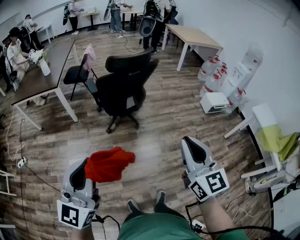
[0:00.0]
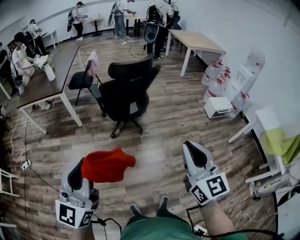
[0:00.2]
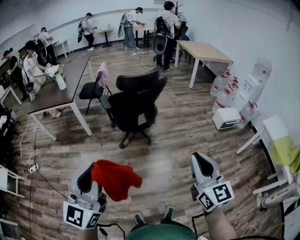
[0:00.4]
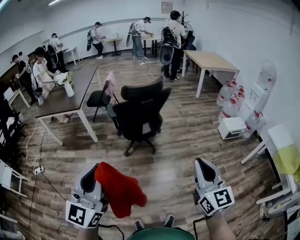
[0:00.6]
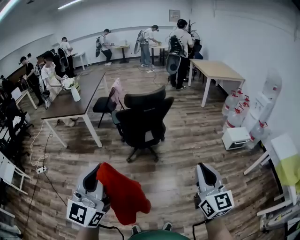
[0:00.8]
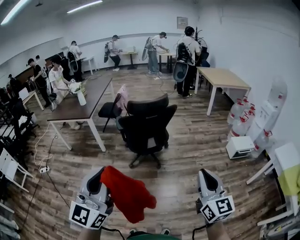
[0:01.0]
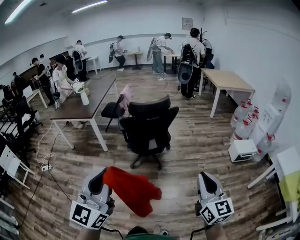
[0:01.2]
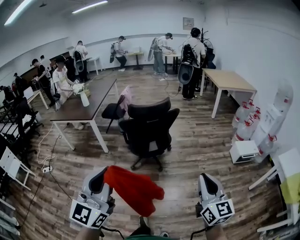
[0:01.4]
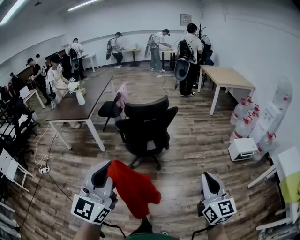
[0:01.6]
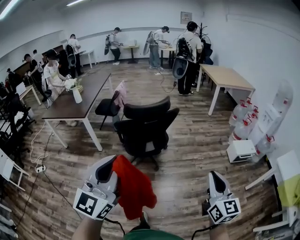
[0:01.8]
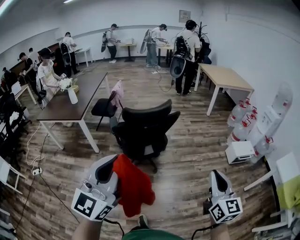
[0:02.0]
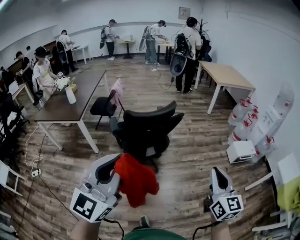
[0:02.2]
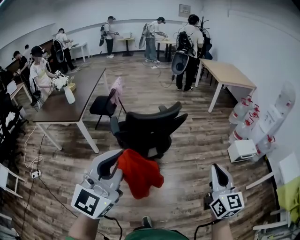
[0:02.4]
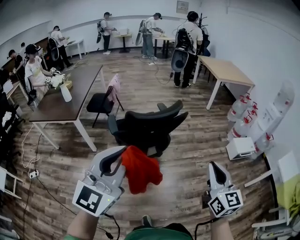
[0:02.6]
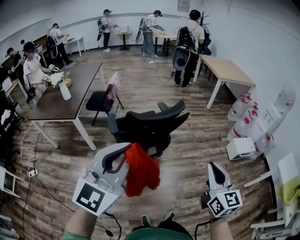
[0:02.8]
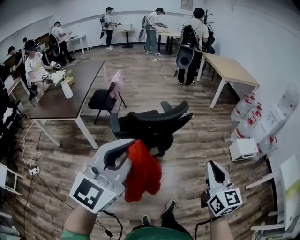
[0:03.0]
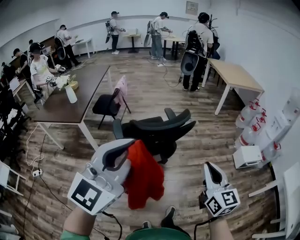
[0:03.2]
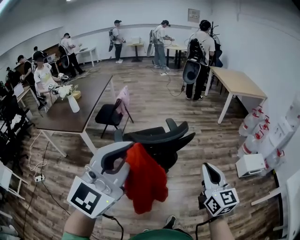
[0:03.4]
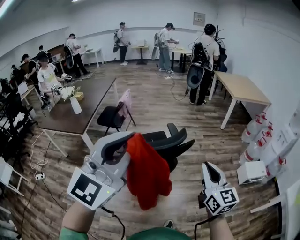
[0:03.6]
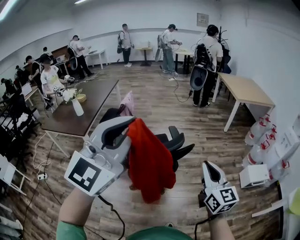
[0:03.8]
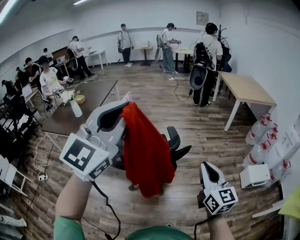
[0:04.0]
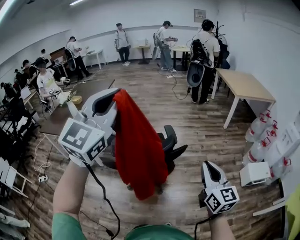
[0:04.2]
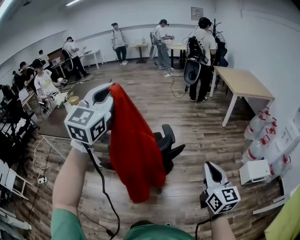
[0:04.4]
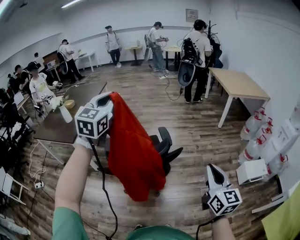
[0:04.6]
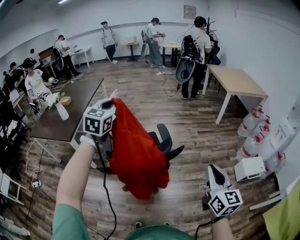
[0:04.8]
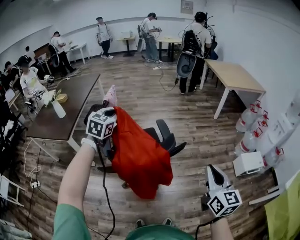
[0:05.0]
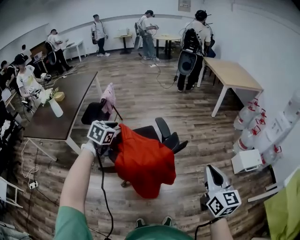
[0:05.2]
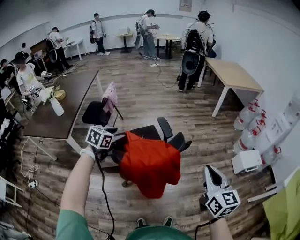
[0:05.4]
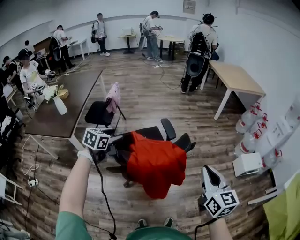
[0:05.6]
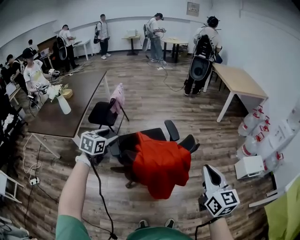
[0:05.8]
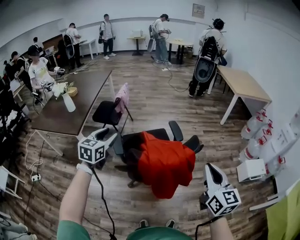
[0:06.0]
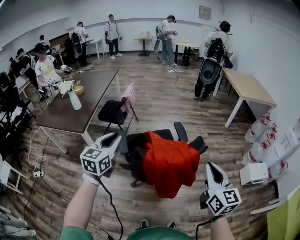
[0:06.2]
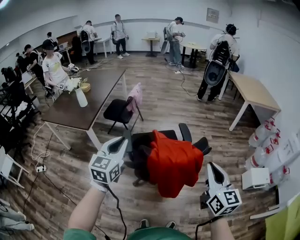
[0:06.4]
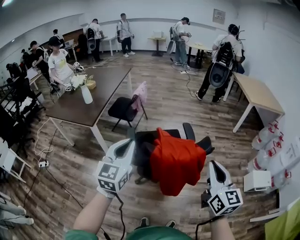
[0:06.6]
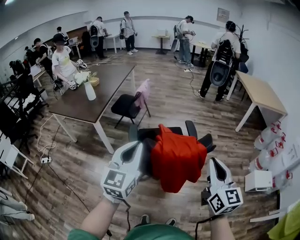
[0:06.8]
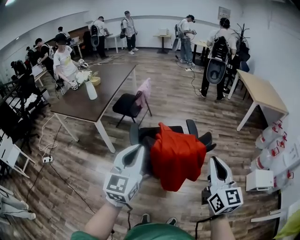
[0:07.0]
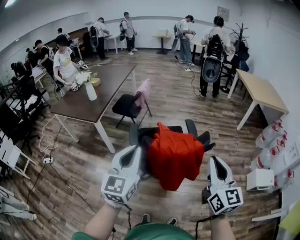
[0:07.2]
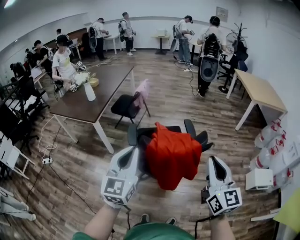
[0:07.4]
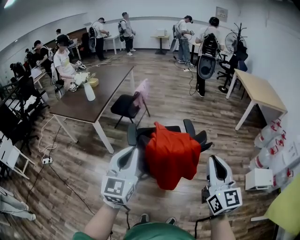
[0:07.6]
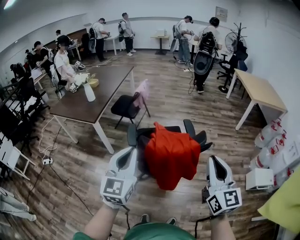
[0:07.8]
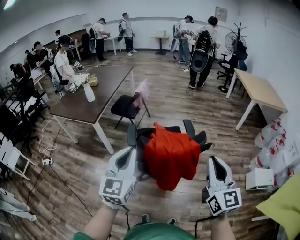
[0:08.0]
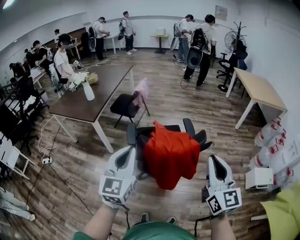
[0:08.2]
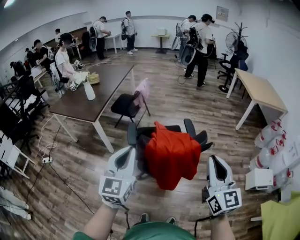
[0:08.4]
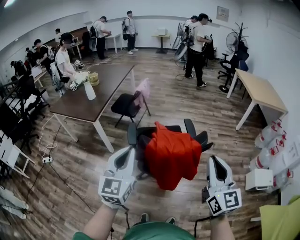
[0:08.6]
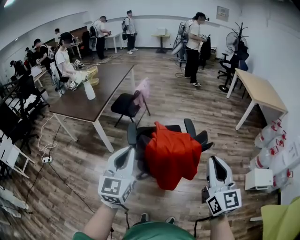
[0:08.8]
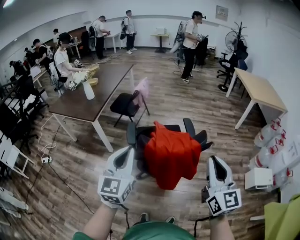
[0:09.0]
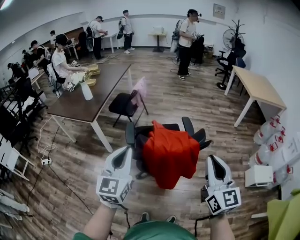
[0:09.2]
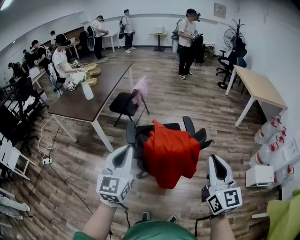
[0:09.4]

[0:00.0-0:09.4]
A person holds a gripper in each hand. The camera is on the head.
0:00.0 to 0:01.6: The right gripper travels to the right by roughly 20 cm. Meanwhile the left gripper travels to the right and forward by some 20 cm.
0:01.6 to 0:03.2: The right gripper moves forward and to the left, approximately 35 cm. Meanwhile the left gripper shifts approximately 30 cm forward.
0:03.2 to 0:04.8: The left gripper shifts some 40 cm forward, and turns by some 30 degrees. The right gripper moves forward and to the right, some 20 cm.
0:04.8 to 0:06.2: The left gripper travels backward, to the left and downward by some 25 cm, and opens, then closes again, while the right gripper moves to the left, about 15 cm.
0:06.2 to 0:07.8: The right gripper shifts by approximately 5 cm. The left gripper travels backward and to the right by some 15 cm.
0:07.8 to 0:09.4: The grippers make only small movements.

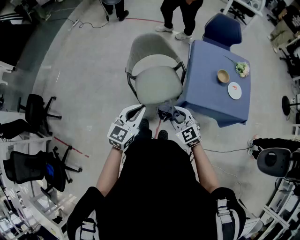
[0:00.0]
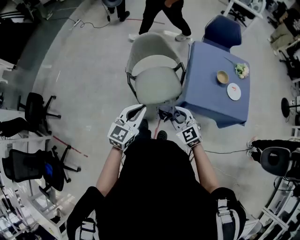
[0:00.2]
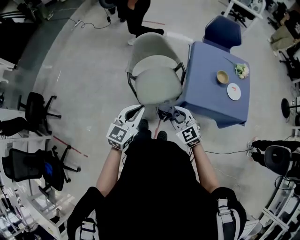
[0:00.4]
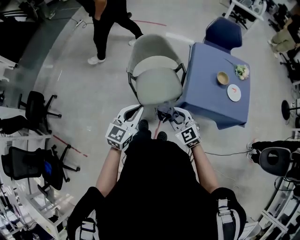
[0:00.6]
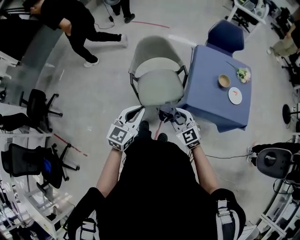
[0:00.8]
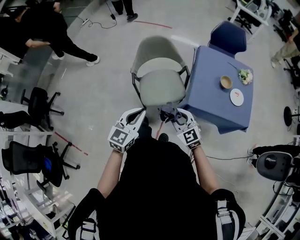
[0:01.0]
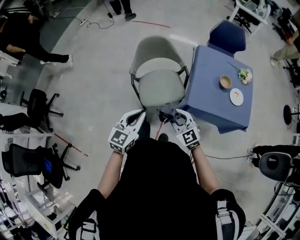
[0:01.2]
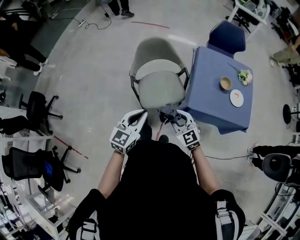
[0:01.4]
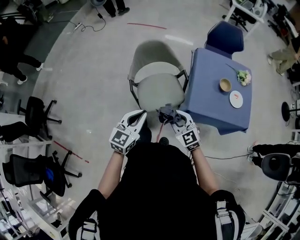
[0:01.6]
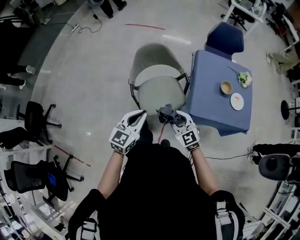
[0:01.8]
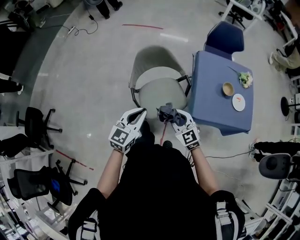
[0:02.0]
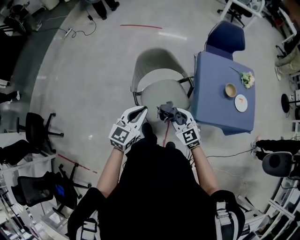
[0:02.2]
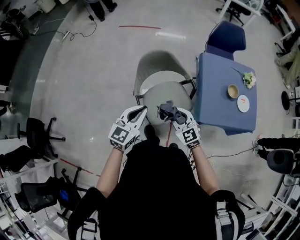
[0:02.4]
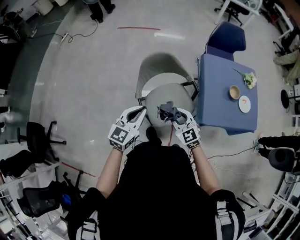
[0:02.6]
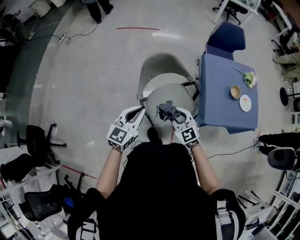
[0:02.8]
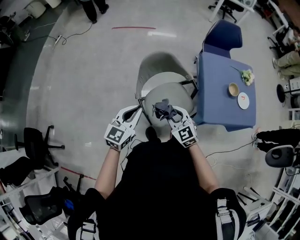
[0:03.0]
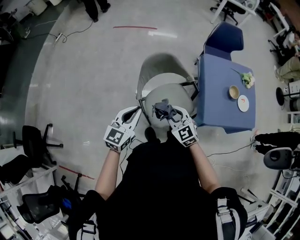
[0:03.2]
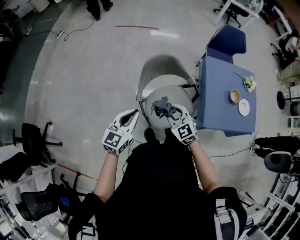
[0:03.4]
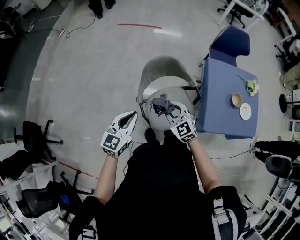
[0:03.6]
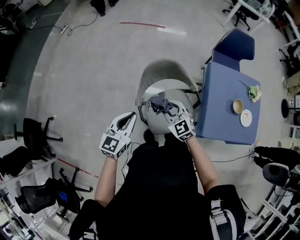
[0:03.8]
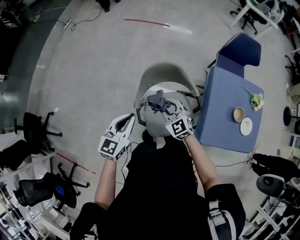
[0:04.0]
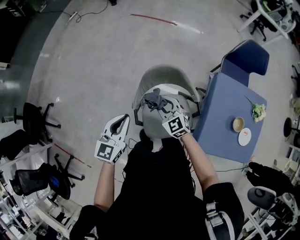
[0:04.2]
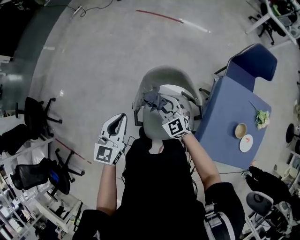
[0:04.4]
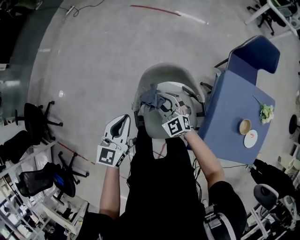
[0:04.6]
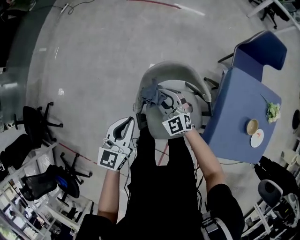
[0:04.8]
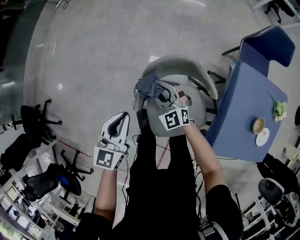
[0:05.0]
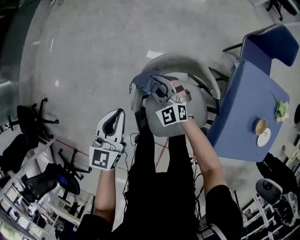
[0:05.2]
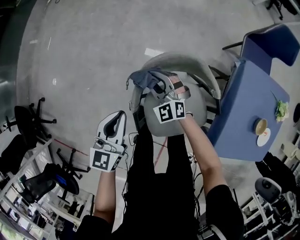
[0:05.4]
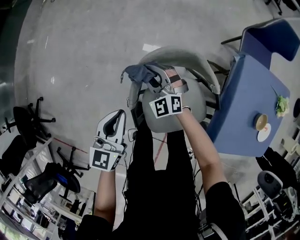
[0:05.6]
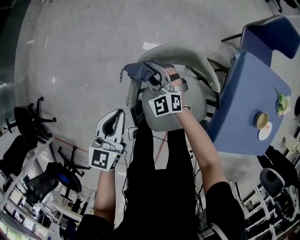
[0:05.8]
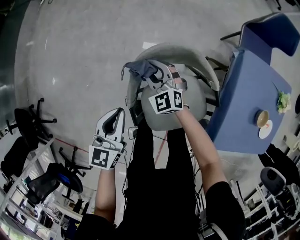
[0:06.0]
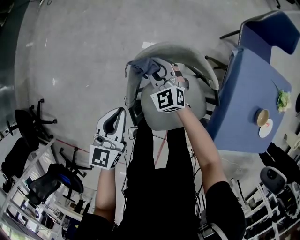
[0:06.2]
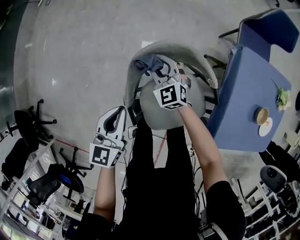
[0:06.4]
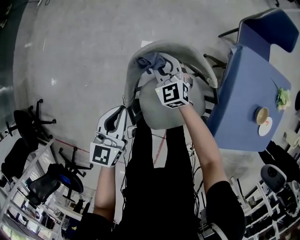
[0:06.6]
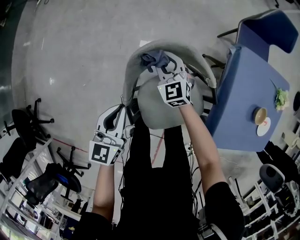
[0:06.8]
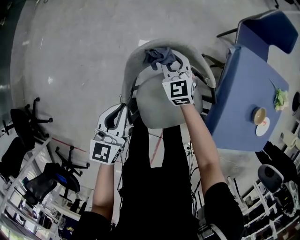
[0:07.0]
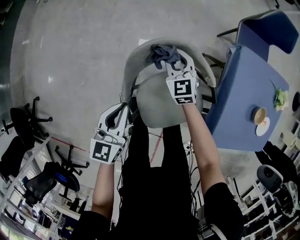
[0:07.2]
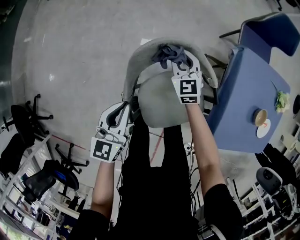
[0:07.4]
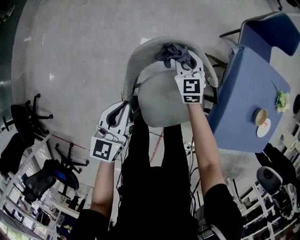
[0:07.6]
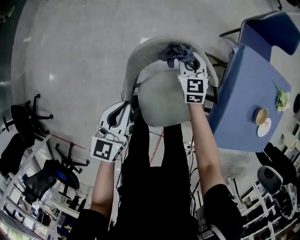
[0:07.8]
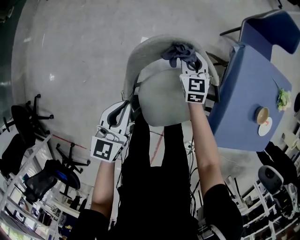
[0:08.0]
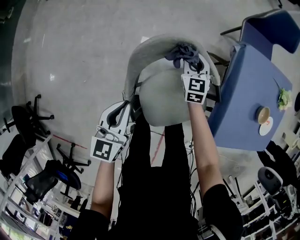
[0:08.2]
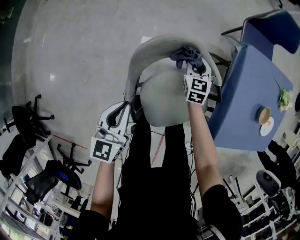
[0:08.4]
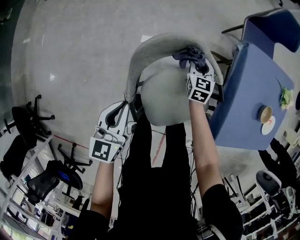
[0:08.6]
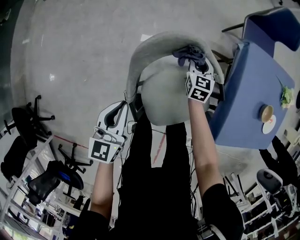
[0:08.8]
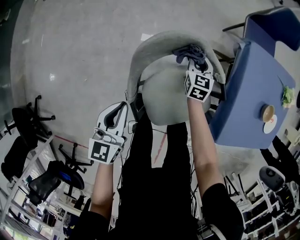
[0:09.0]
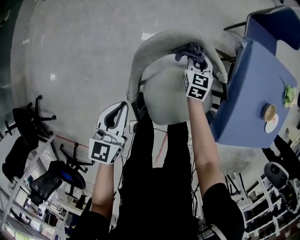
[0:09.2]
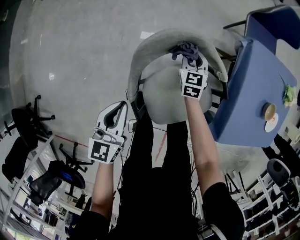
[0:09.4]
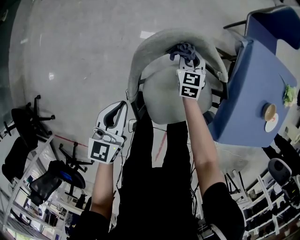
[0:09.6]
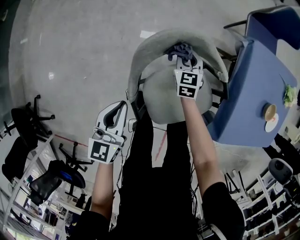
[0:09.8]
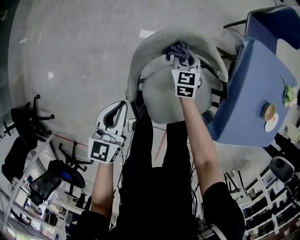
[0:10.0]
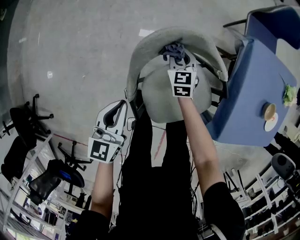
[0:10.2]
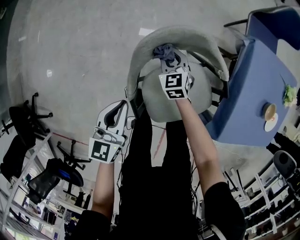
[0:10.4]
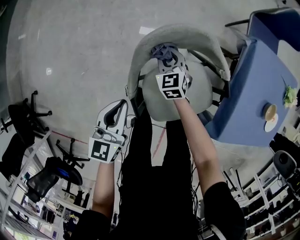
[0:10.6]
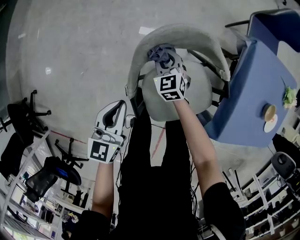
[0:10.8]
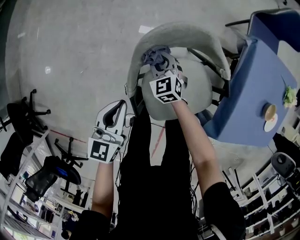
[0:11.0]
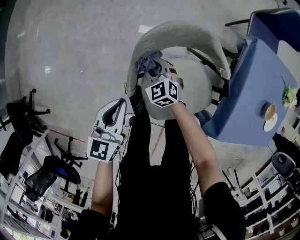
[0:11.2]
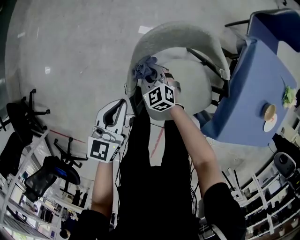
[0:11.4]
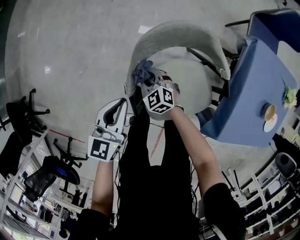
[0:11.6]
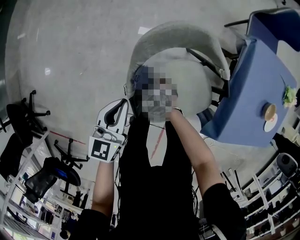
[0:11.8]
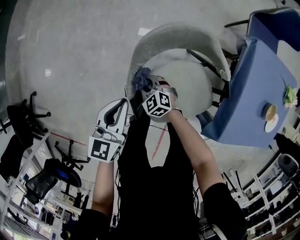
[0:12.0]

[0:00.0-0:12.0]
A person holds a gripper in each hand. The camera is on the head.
0:00.0 to 0:01.6: The grippers stay close to where they were, moving slightly.
0:01.6 to 0:03.0: The grippers both shift forward and to the left by some 30 cm.
0:03.0 to 0:04.4: The left gripper heads forward, covering about 15 cm, and changes its angle by some 30 degrees; the right gripper heads forward, covering roughly 25 cm, and rotates about 20 degrees.
0:04.4 to 0:06.0: The grippers both shift downward and forward by about 20 cm.
0:06.0 to 0:07.6: The right gripper goes some 15 cm to the right, and turns by some 30 degrees.
0:07.6 to 0:09.0: The right gripper travels downward and to the right by approximately 10 cm, and turns by approximately 30 degrees.
0:09.0 to 0:10.4: The right gripper travels to the left by about 15 cm, and rotates about 30 degrees.
0:10.4 to 0:12.0: The right gripper is displaced backward, to the left and downward by roughly 20 cm, and swivels about 30 degrees.

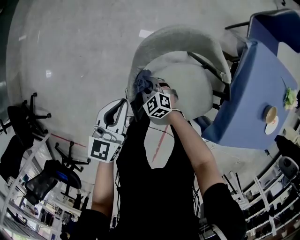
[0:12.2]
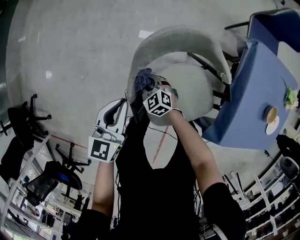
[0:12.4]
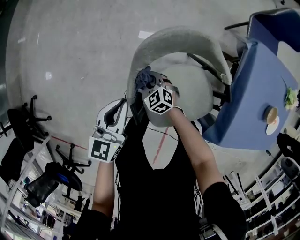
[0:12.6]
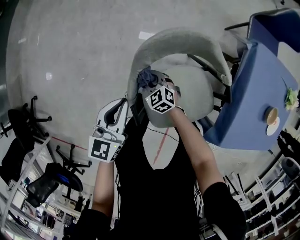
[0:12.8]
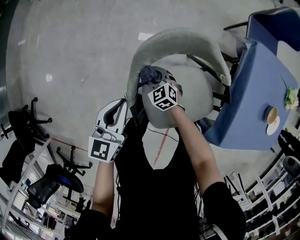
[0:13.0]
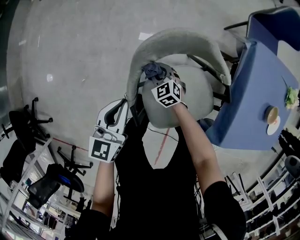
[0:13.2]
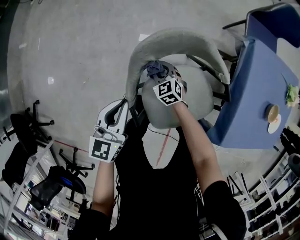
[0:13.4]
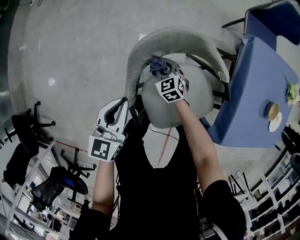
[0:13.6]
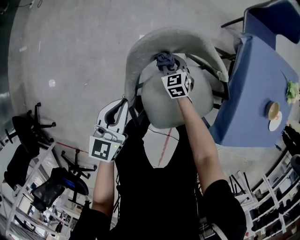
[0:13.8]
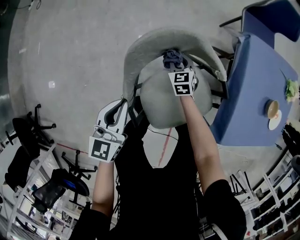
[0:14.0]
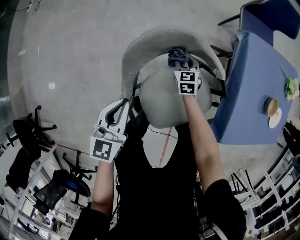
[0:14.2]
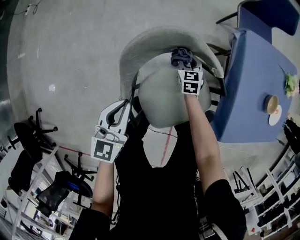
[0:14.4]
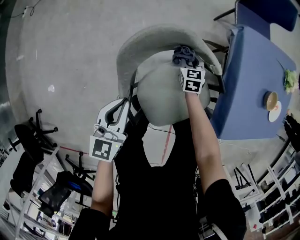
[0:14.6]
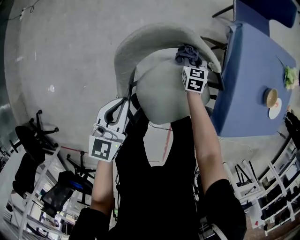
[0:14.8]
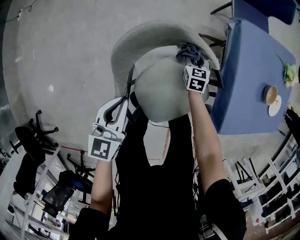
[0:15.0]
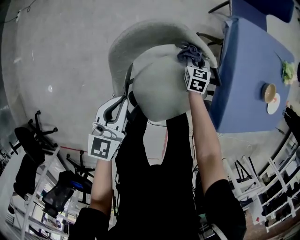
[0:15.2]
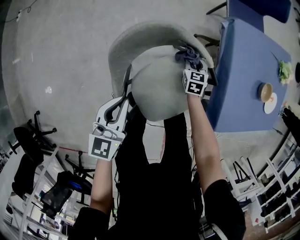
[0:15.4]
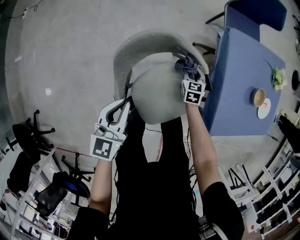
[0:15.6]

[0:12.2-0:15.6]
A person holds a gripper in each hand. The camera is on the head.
0:12.2 to 0:13.8: The right gripper heads to the right and forward, covering about 20 cm, and changes its angle by about 30 degrees.
0:13.8 to 0:15.6: The left gripper goes roughly 10 cm to the right and upward. Meanwhile the right gripper shifts about 20 cm to the right, and changes its angle by some 30 degrees.
